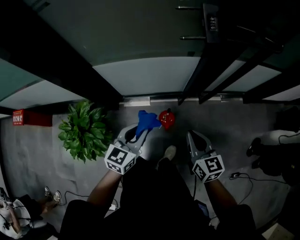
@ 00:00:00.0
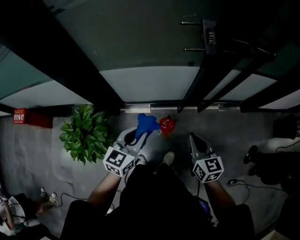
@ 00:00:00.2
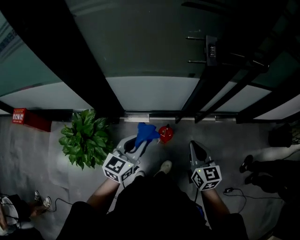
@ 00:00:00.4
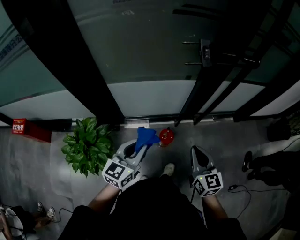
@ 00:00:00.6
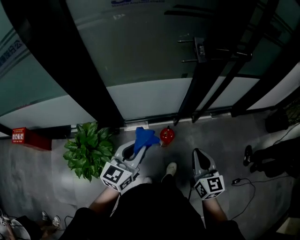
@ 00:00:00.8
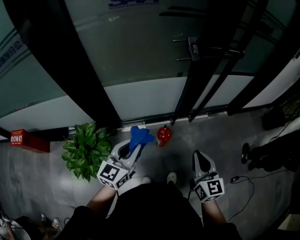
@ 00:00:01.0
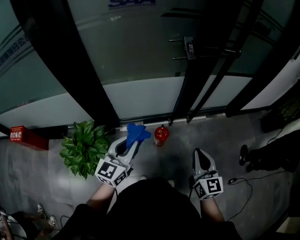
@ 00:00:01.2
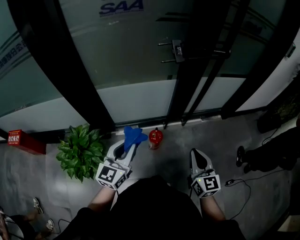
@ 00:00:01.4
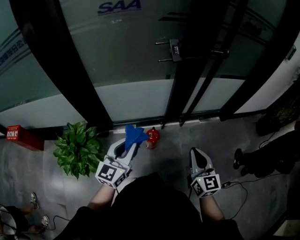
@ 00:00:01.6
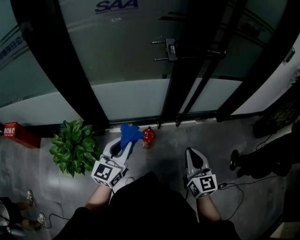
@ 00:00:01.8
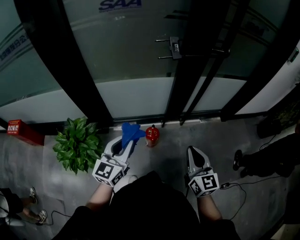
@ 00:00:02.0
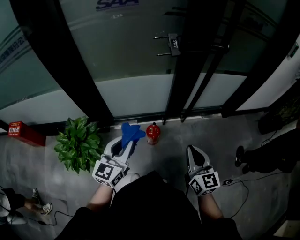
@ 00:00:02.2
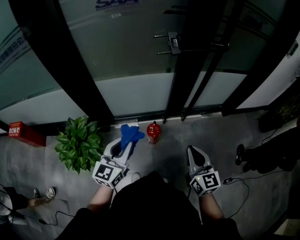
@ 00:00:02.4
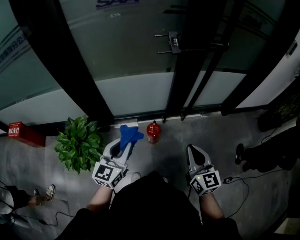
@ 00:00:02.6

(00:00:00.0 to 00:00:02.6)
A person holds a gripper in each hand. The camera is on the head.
00:00:00.0 - 00:00:01.2: The right gripper heads backward and upward, covering roughly 20 cm, and changes its angle by approximately 20 degrees. The left gripper is displaced upward and backward by some 15 cm.
00:00:01.2 - 00:00:02.6: The left gripper moves some 5 cm.
